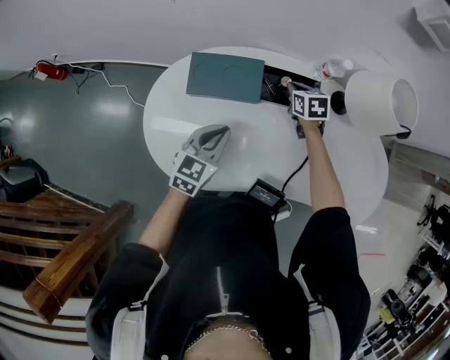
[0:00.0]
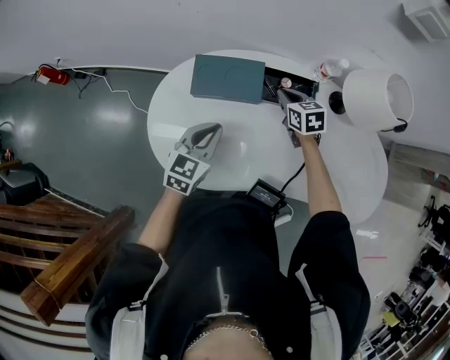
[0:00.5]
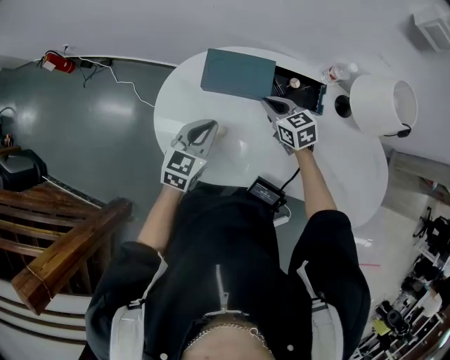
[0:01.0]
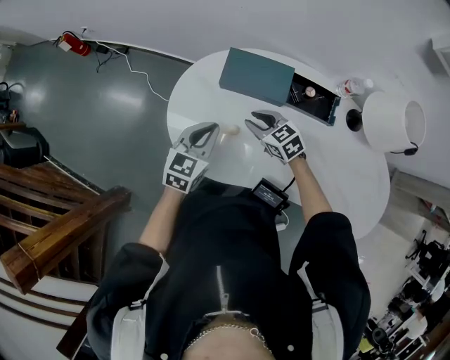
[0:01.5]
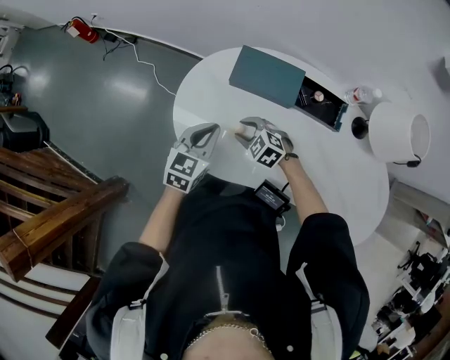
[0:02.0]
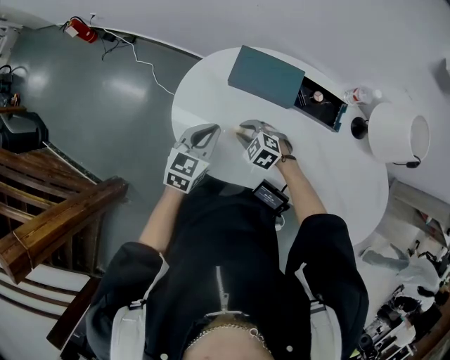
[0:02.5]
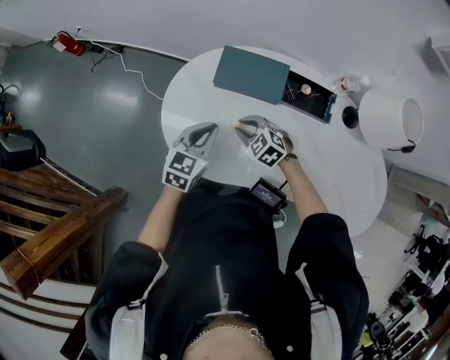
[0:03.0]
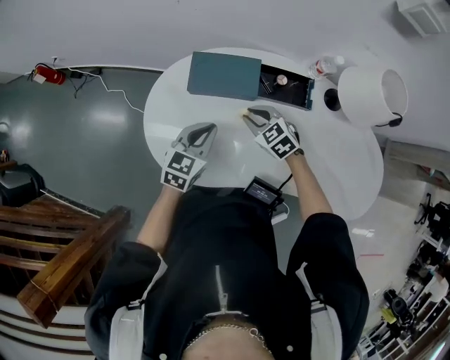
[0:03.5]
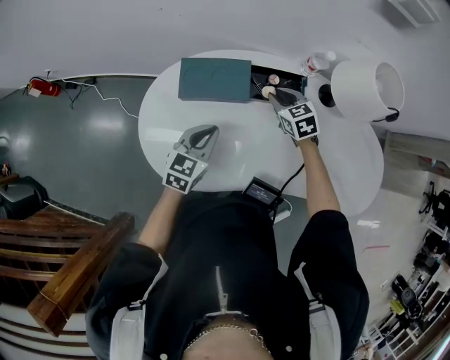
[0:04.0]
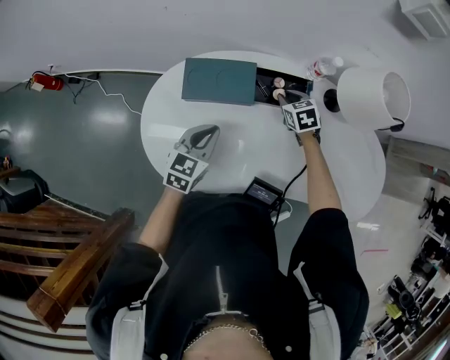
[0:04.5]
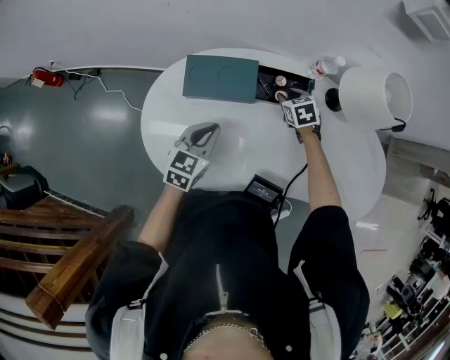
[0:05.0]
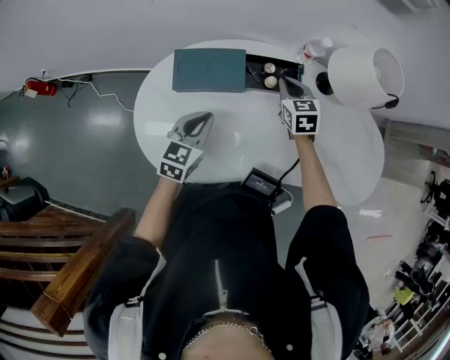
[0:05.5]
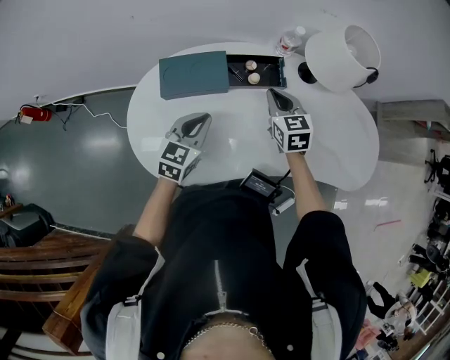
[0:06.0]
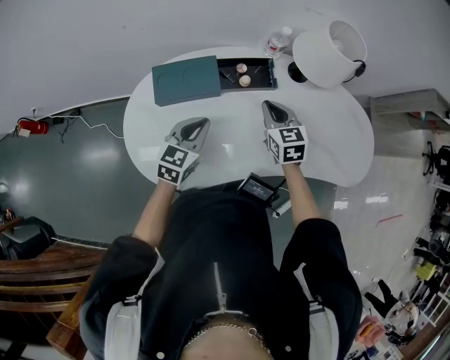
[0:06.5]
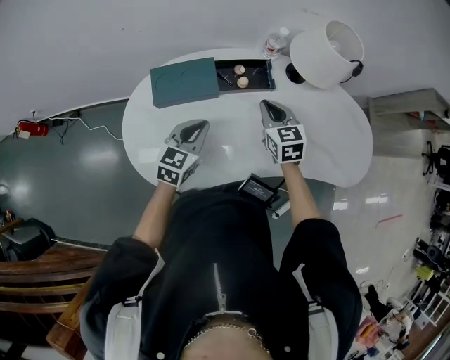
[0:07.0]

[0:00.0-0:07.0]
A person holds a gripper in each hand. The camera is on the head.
0.0 to 2.0 s: The right gripper ends up approximately 35 cm from where it was, rolls counterclockwise, seen from behind, by roughly 60 degrees, and opens; the left gripper ends up about 15 cm from where it was.
2.0 to 3.5 s: Both grippers move to the right, roughly 10 cm. The right gripper swivels roughly 30 degrees.
3.5 to 5.0 s: The right gripper heads to the right and forward, covering roughly 20 cm, and changes its angle by some 30 degrees.
5.0 to 7.0 s: The left gripper shifts some 5 cm to the right. The right gripper travels upward and backward by about 20 cm, turns by roughly 30 degrees, and closes up.

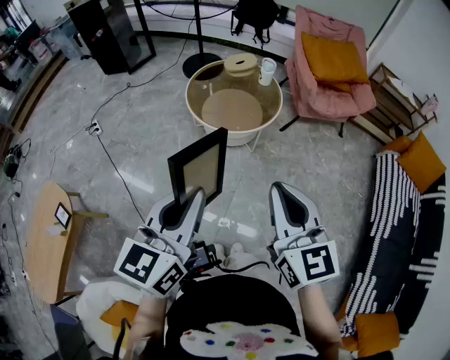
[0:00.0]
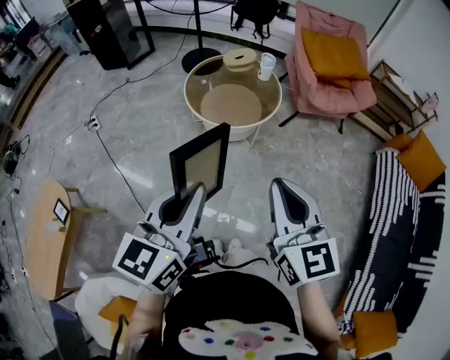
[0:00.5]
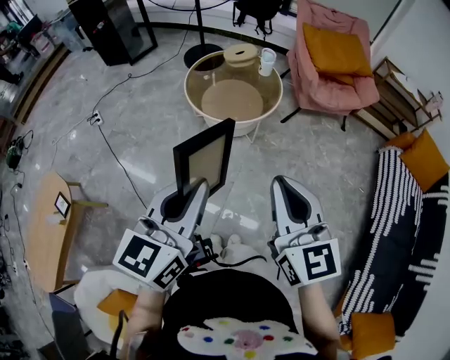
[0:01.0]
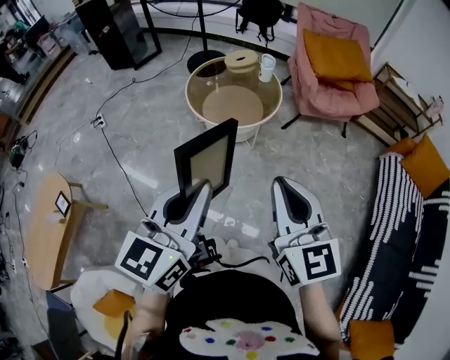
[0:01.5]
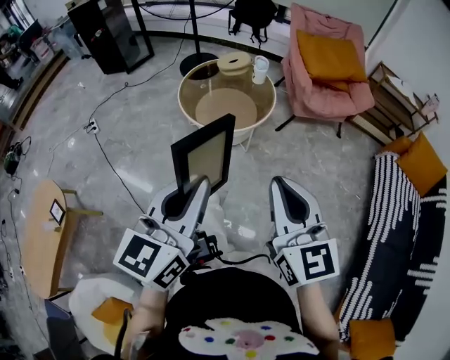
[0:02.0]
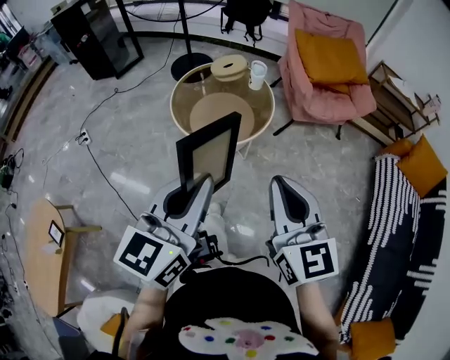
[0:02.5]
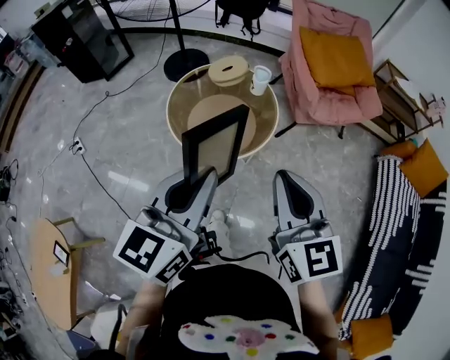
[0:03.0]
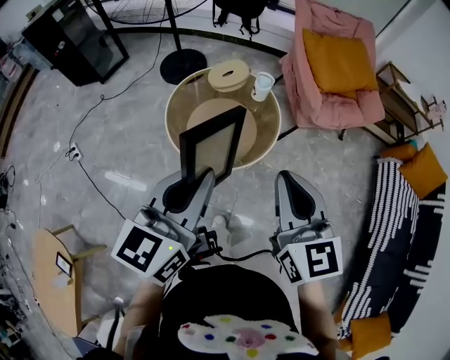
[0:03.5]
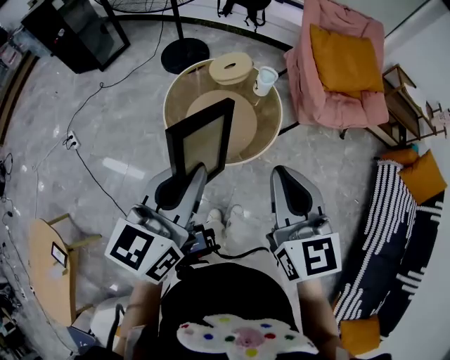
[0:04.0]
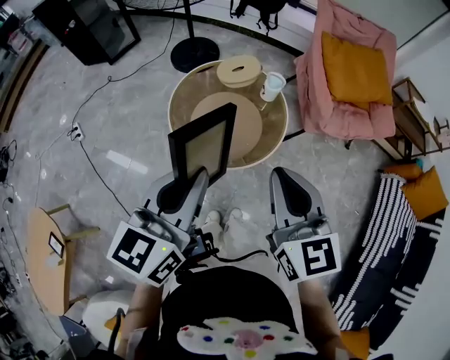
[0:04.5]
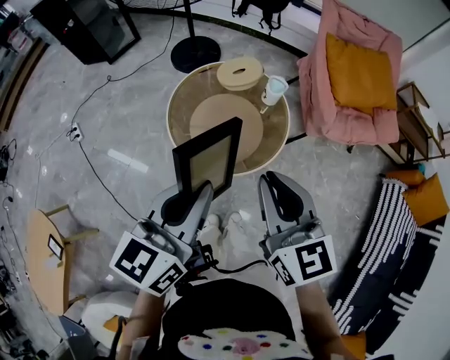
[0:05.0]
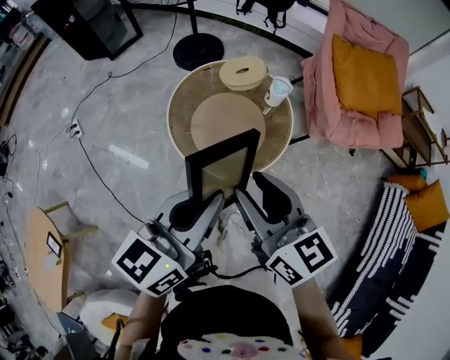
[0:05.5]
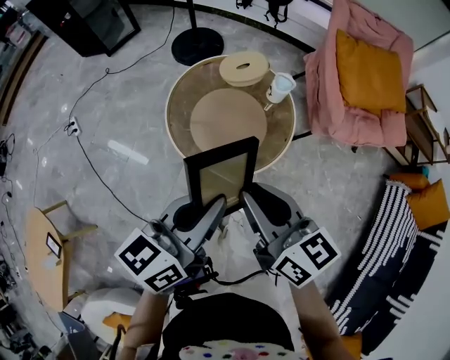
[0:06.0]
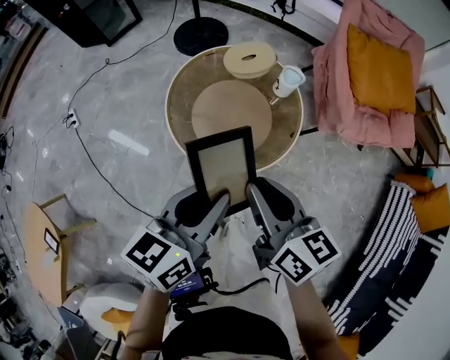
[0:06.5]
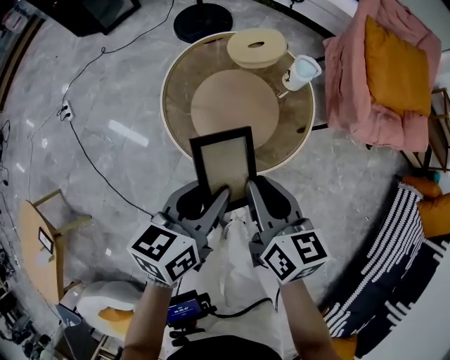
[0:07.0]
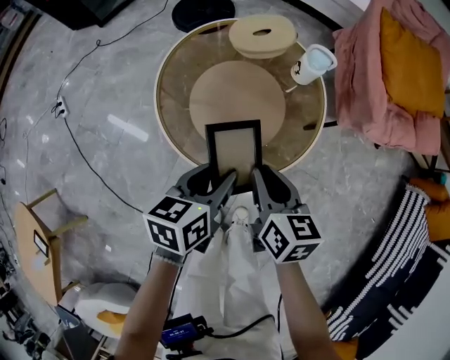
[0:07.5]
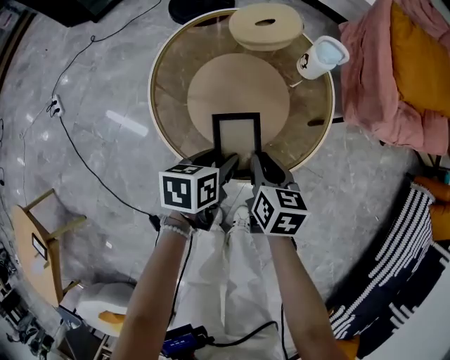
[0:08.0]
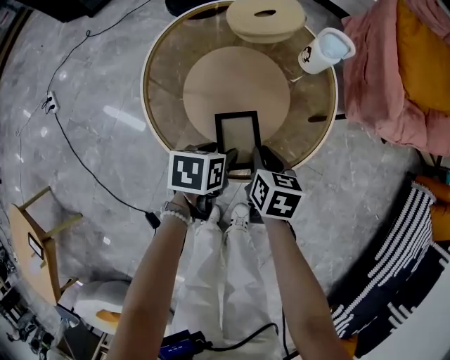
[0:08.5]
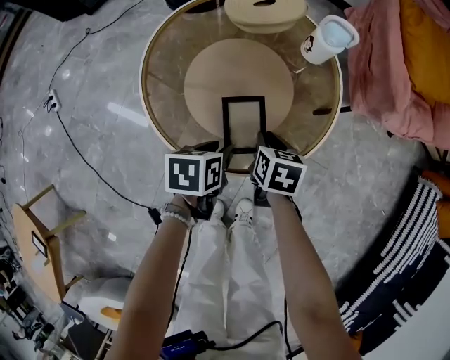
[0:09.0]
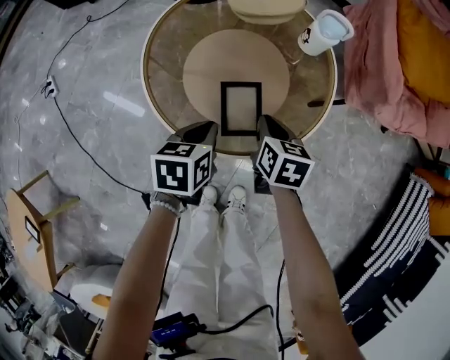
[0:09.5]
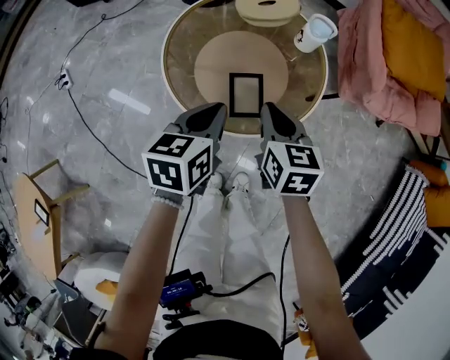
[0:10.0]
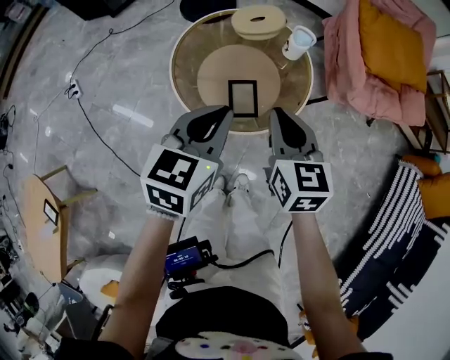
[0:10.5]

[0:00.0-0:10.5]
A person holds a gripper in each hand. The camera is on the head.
0.0 to 2.0 s: The grippers stay close to where they were, moving slightly.
2.0 to 4.0 s: Both grippers move forward, roughly 30 cm.
4.0 to 6.5 s: The right gripper moves downward and forward, approximately 15 cm, turns by approximately 30 degrees, and opens and closes again, while the left gripper shifts roughly 10 cm downward.
6.5 to 8.5 s: Both grippers travel together downward, approximately 35 cm. The right gripper tilts its fingers about 30 degrees downward. The left gripper points its fingers approximately 40 degrees further downward, and opens its fingers.
8.5 to 10.5 s: Both grippers travel together upward, approximately 30 cm. The left gripper turns by about 40 degrees, and closes. The right gripper changes its angle by about 30 degrees.

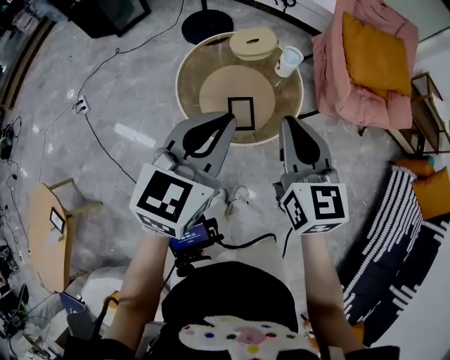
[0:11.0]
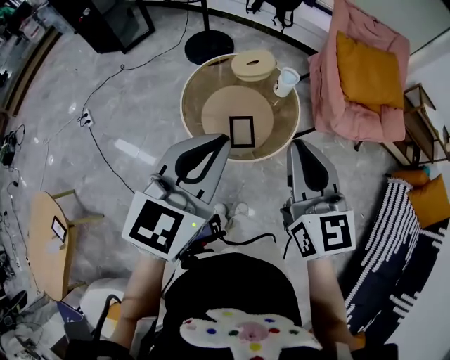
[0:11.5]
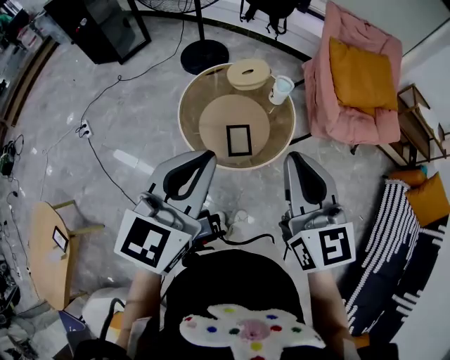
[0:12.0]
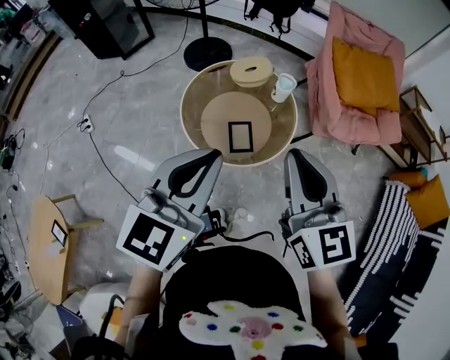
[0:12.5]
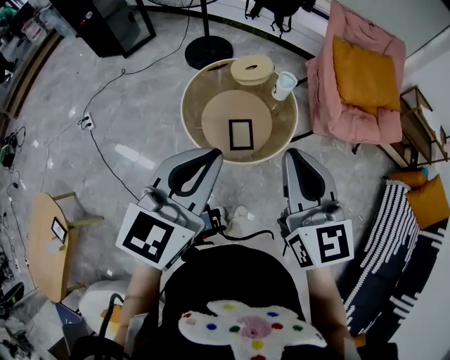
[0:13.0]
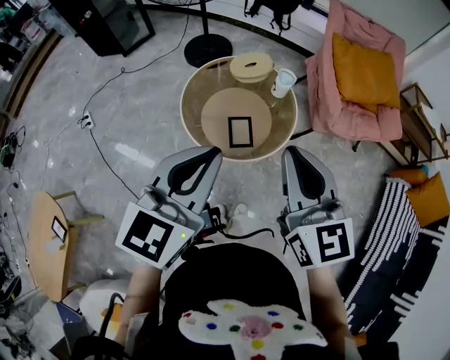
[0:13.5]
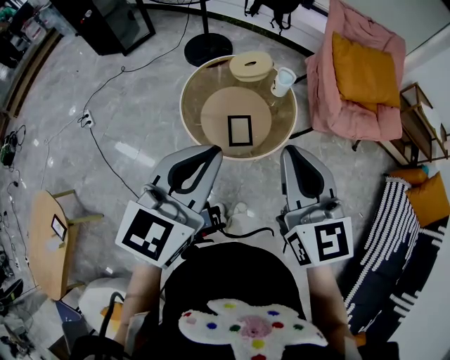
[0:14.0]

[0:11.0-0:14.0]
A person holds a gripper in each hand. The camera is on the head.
11.0 to 12.5 s: The two grippers go about 5 cm upward.
12.5 to 14.0 s: Neither gripper changes place.

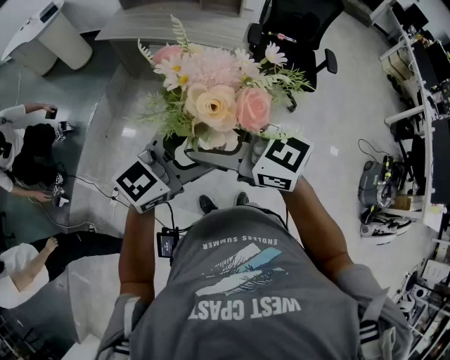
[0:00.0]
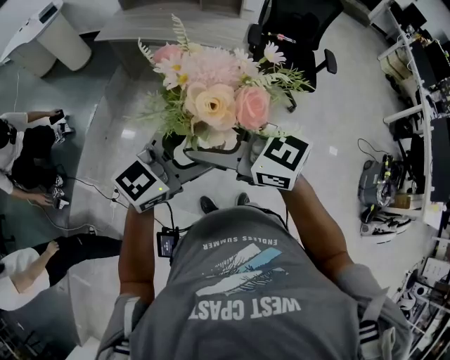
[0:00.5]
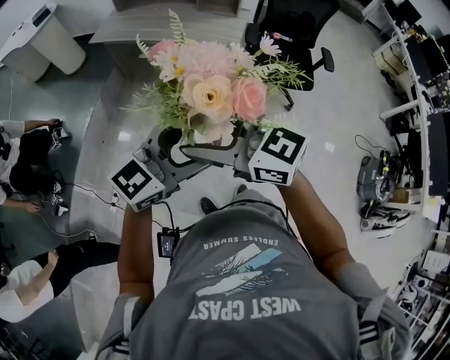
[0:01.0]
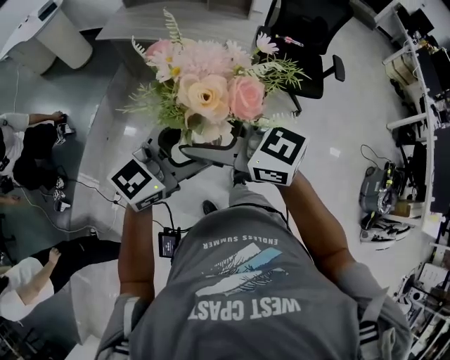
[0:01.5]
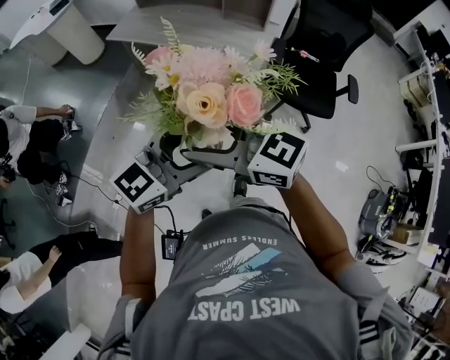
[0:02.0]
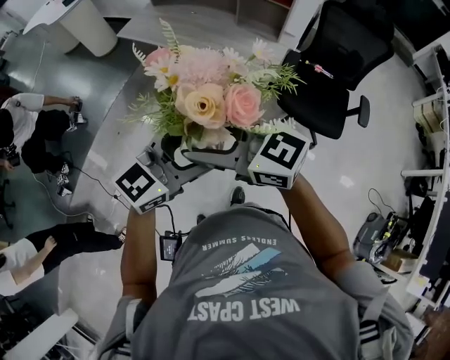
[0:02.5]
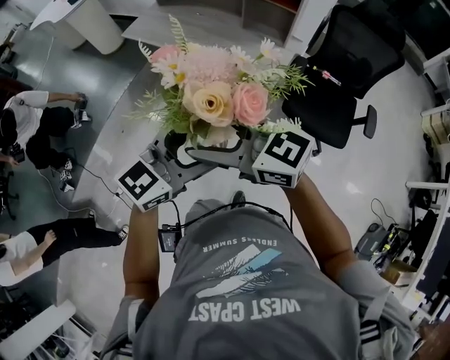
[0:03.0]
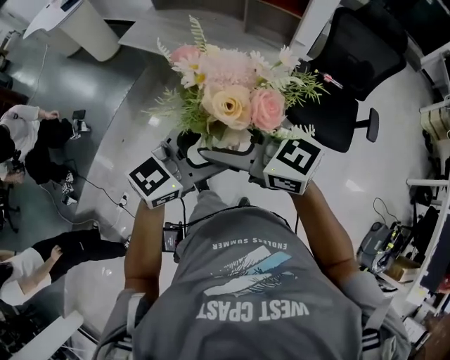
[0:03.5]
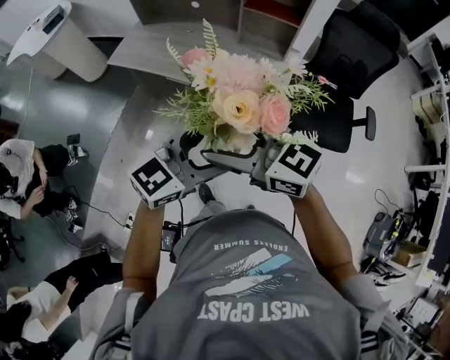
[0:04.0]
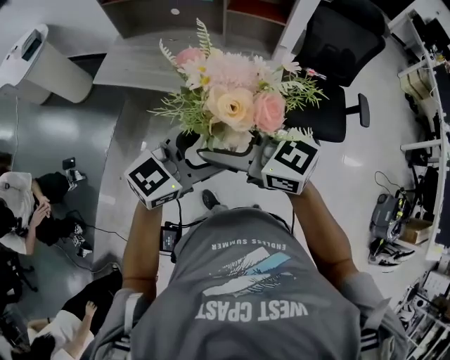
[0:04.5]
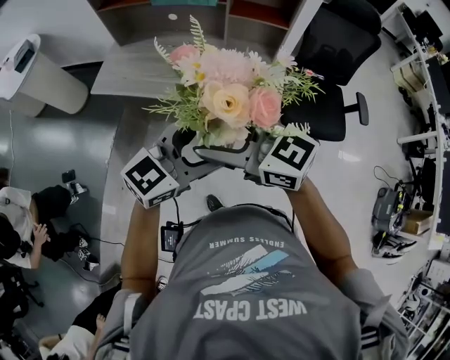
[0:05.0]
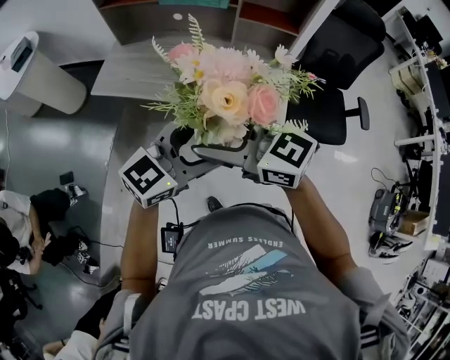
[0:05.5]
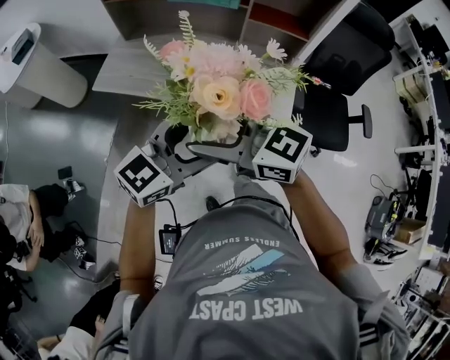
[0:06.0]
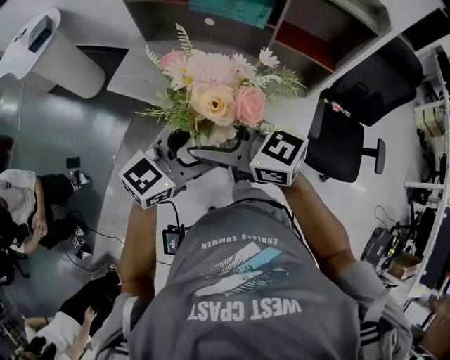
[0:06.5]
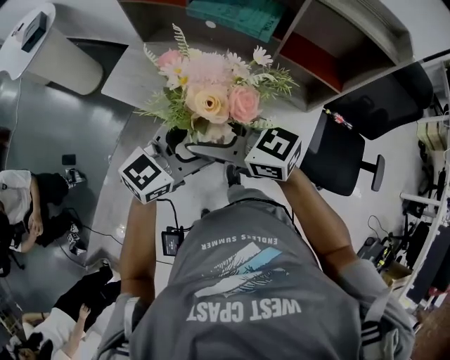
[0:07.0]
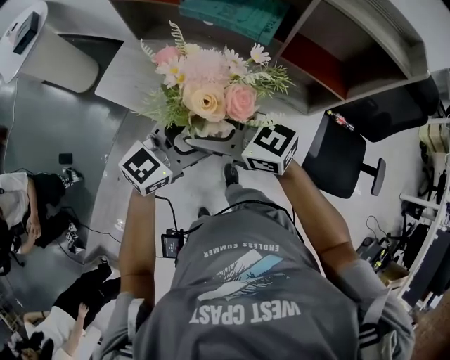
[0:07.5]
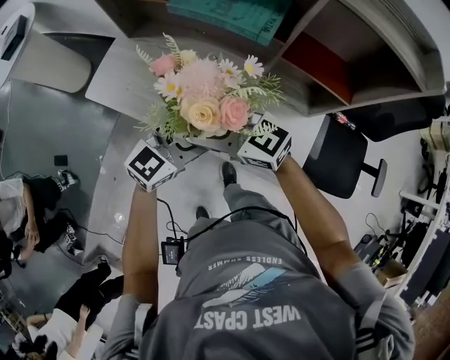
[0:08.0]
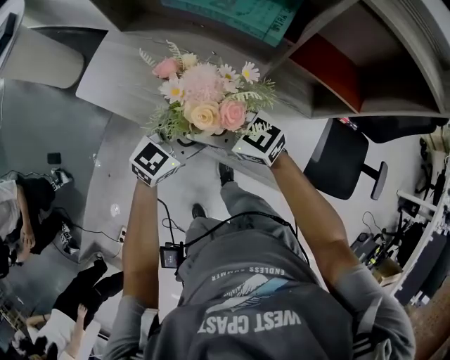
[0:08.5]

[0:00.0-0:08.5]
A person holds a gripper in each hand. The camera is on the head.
0.0 to 2.0 s: The right gripper ends up some 10 cm from where it was, while the left gripper shifts by approximately 15 cm.
2.0 to 4.0 s: The left gripper ends up roughly 20 cm from where it was. The right gripper changes place by some 20 cm.
4.0 to 6.5 s: The left gripper ends up about 25 cm from where it was; the right gripper changes place by some 20 cm.
6.5 to 8.5 s: The right gripper changes place by roughly 25 cm. Meanwhile the left gripper moves about 25 cm.
